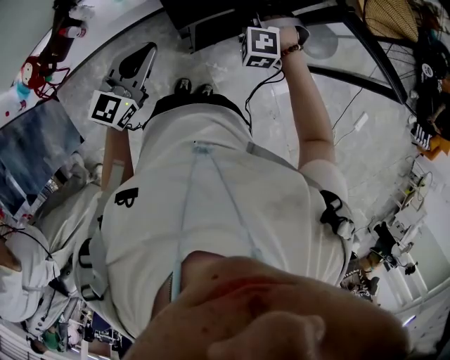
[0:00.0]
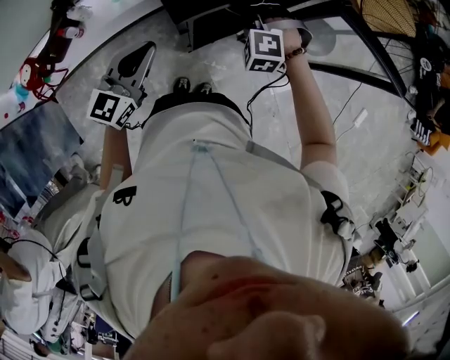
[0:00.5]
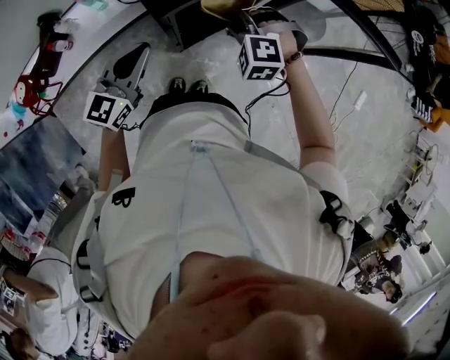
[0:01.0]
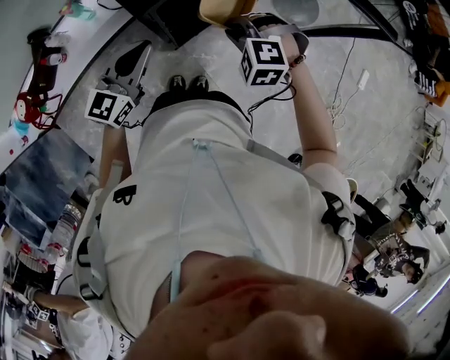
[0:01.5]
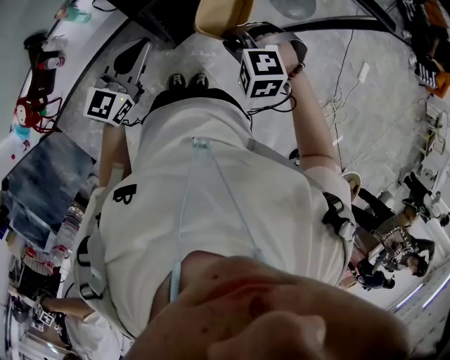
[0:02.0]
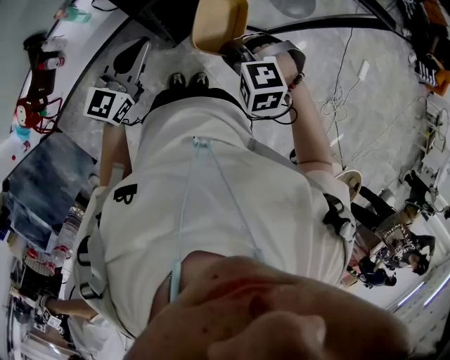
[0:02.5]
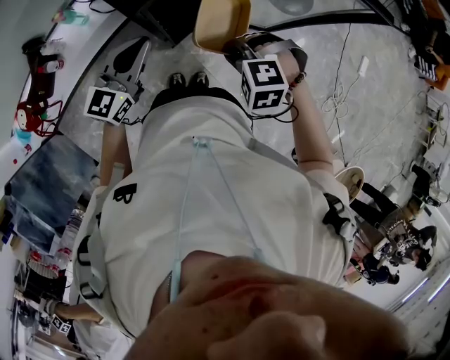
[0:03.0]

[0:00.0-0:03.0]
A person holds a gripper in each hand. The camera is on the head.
0:00.0 to 0:01.5: The right gripper is displaced backward and to the right by approximately 15 cm. The left gripper moves to the right, roughly 5 cm.
0:01.5 to 0:03.0: The right gripper goes about 10 cm backward.

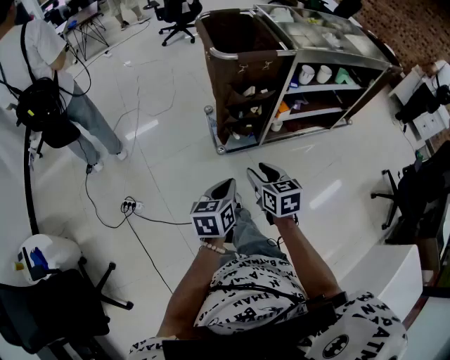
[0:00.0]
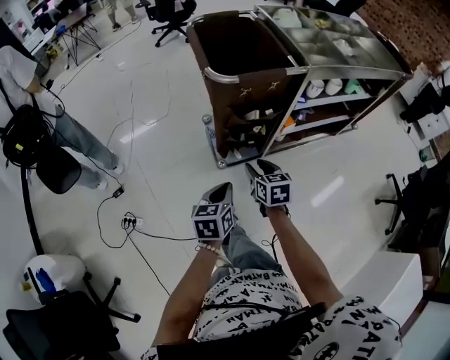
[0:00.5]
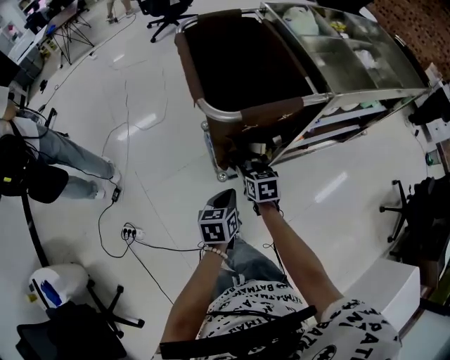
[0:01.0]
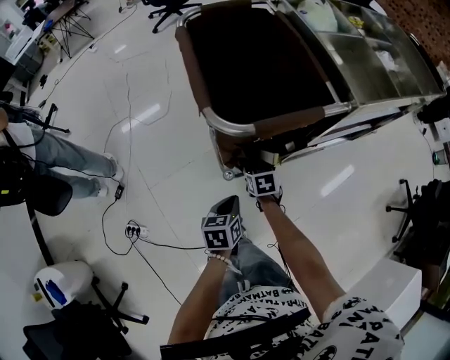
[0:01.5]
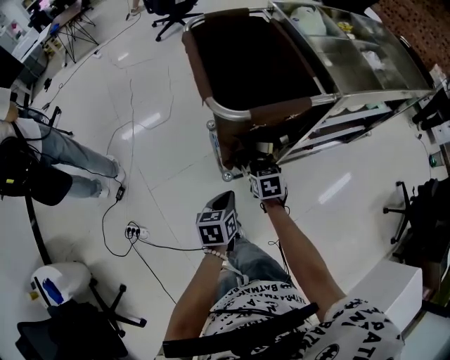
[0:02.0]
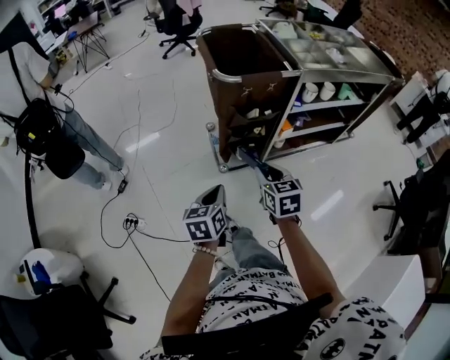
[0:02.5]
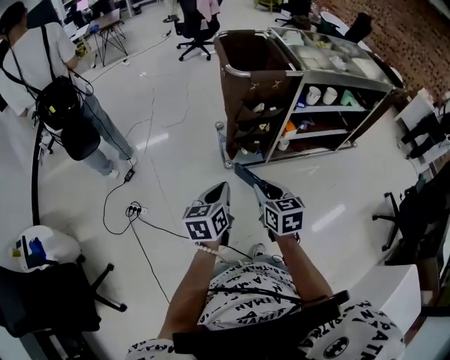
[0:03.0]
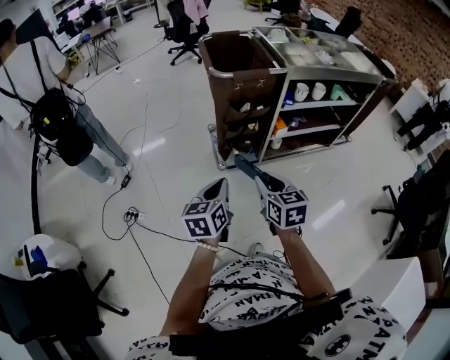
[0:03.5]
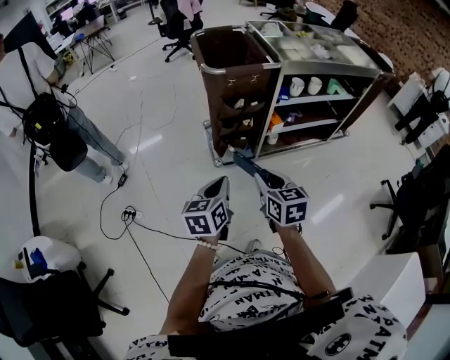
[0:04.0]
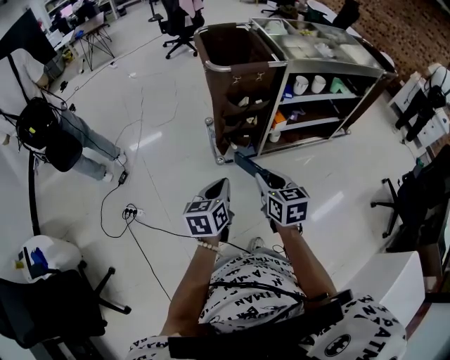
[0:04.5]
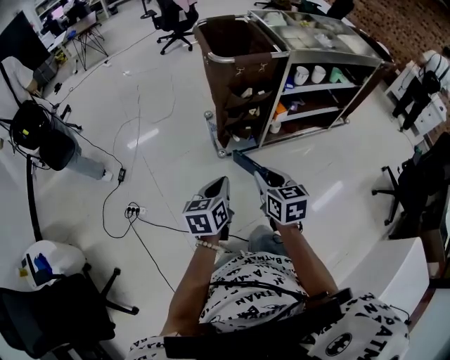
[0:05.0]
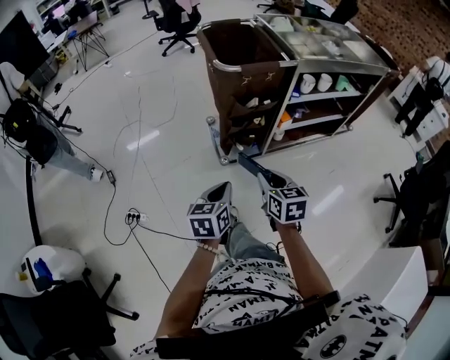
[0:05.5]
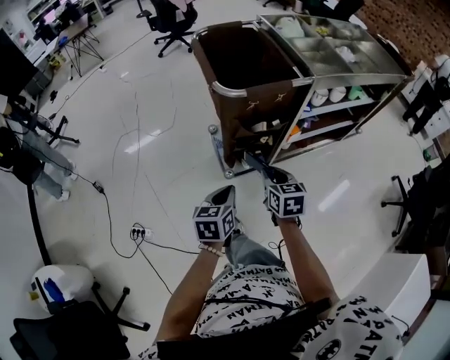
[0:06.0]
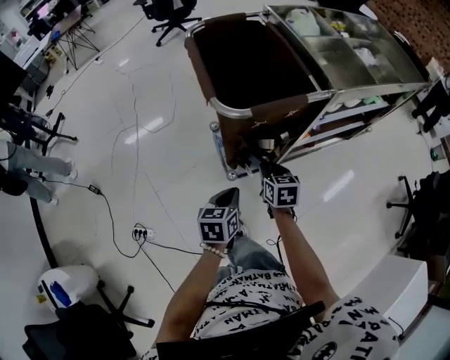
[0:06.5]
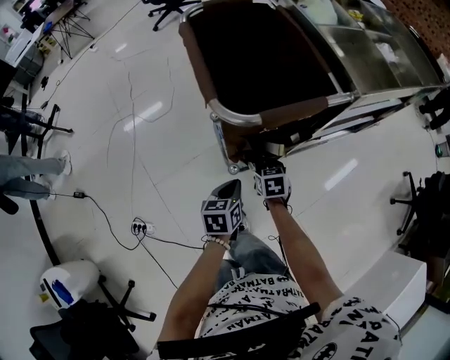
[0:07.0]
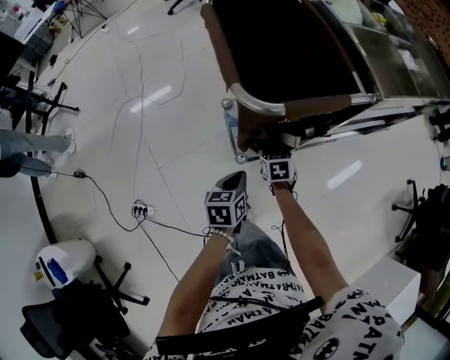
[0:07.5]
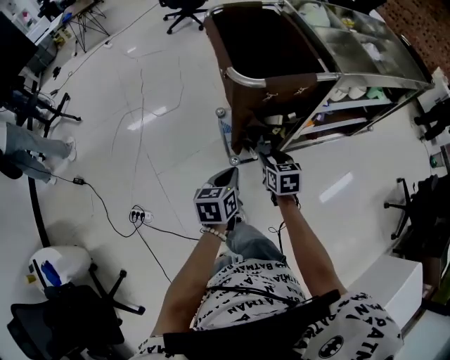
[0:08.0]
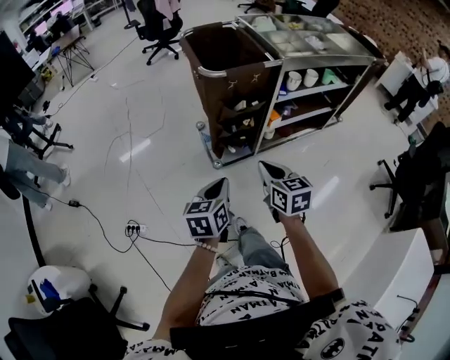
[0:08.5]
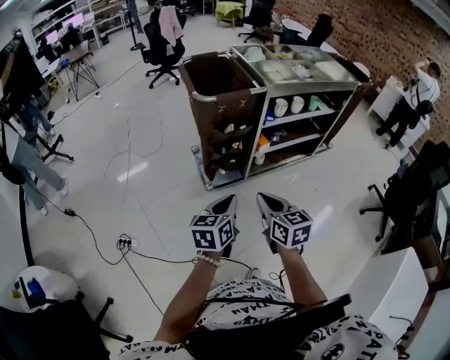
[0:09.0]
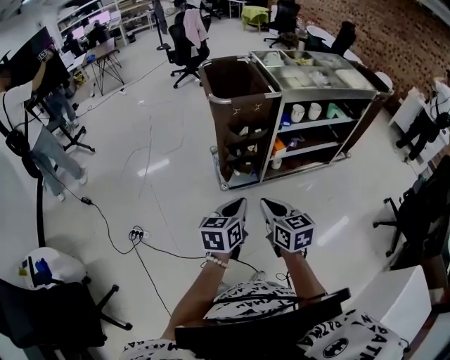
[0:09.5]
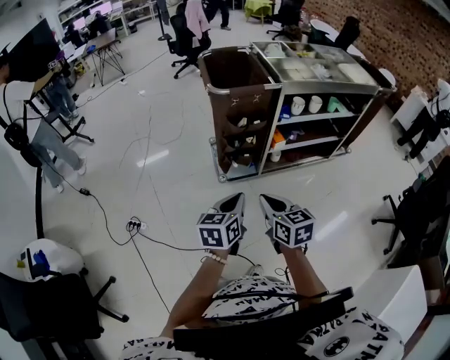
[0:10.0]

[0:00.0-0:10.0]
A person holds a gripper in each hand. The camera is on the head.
0:00.0 to 0:02.0: The grippers both shift forward and downward by roughly 30 cm. The right gripper turns by approximately 20 degrees, and closes its fingers.
0:02.0 to 0:04.0: The grippers both shift backward and upward by about 35 cm. The right gripper rotates approximately 20 degrees.
0:04.0 to 0:06.0: Both grippers move forward and downward, approximately 20 cm.
0:06.0 to 0:08.0: The right gripper travels downward and forward by about 10 cm, and opens up. The left gripper shifts approximately 5 cm forward.
0:08.0 to 0:10.0: The right gripper goes about 35 cm backward and upward, and closes its fingers; the left gripper goes some 30 cm backward, upward and to the right.

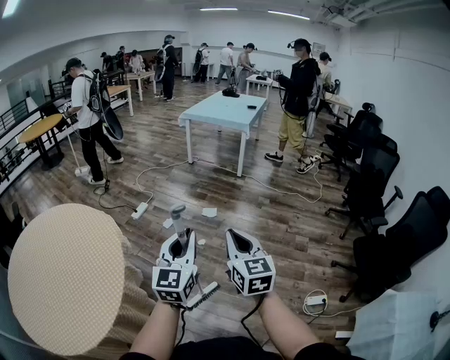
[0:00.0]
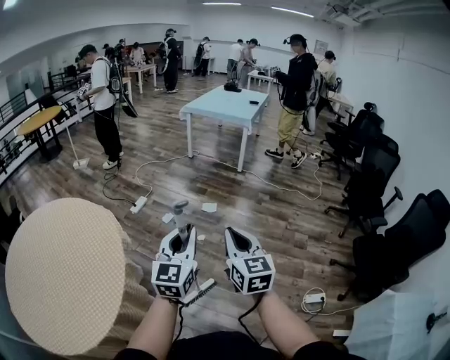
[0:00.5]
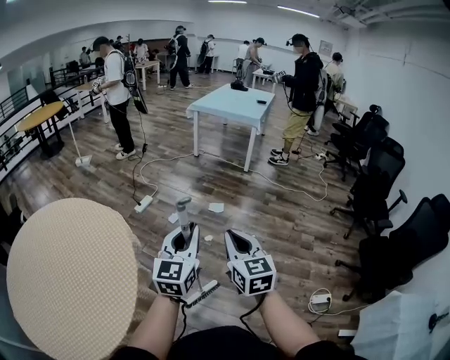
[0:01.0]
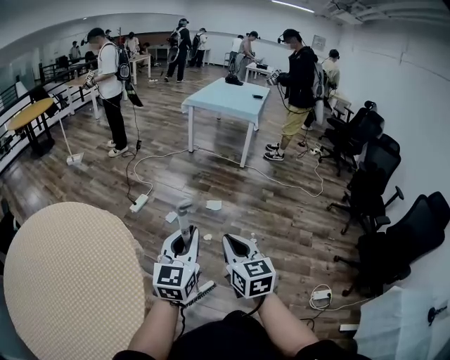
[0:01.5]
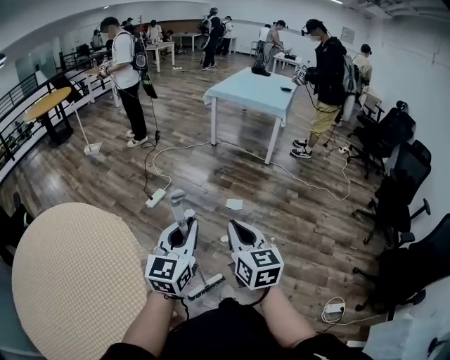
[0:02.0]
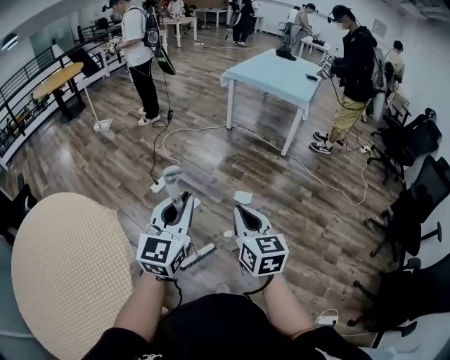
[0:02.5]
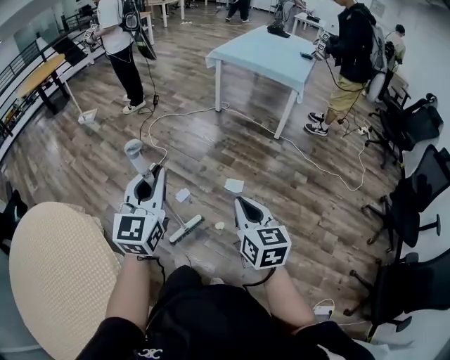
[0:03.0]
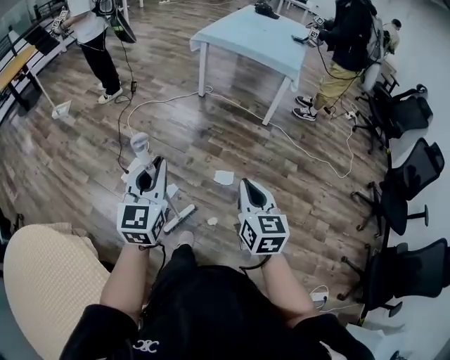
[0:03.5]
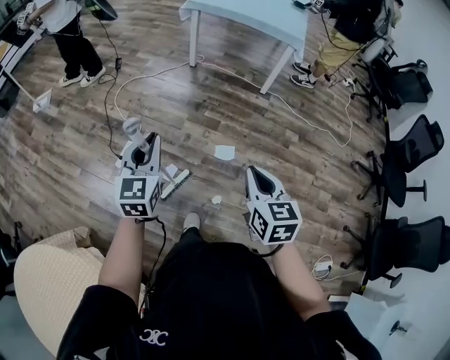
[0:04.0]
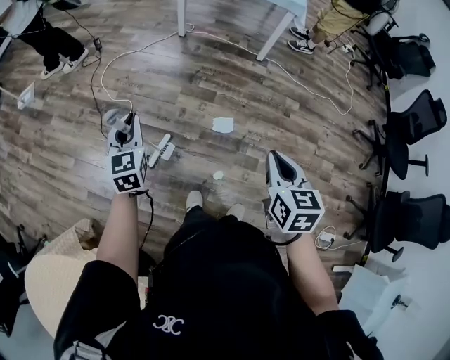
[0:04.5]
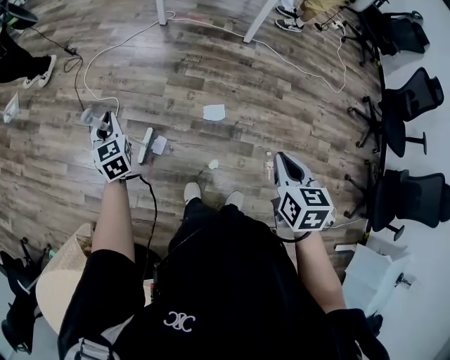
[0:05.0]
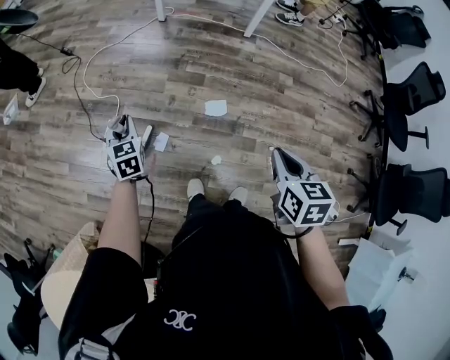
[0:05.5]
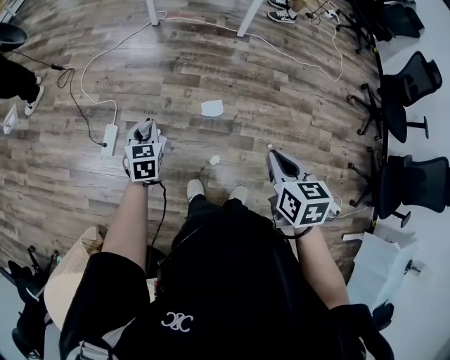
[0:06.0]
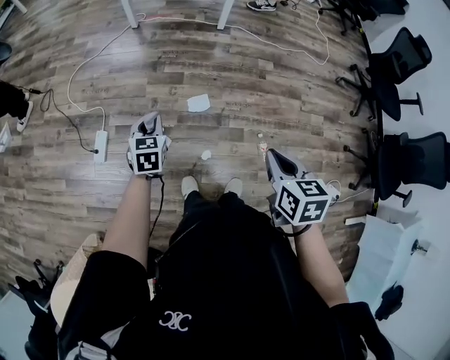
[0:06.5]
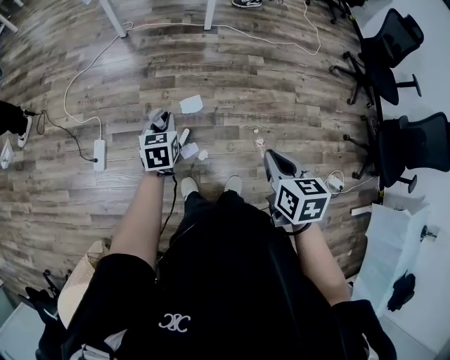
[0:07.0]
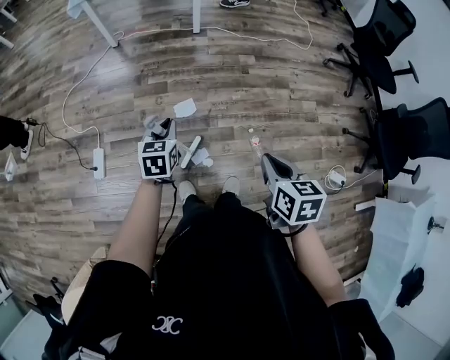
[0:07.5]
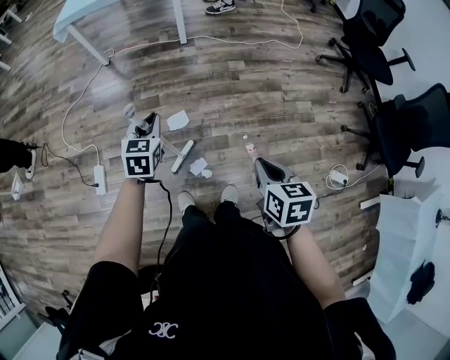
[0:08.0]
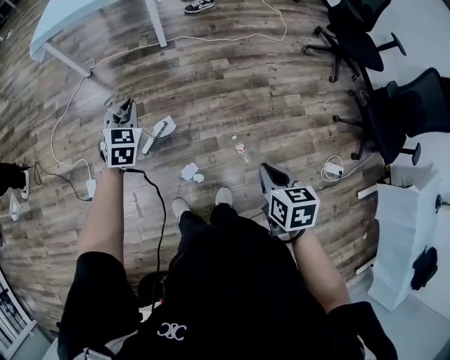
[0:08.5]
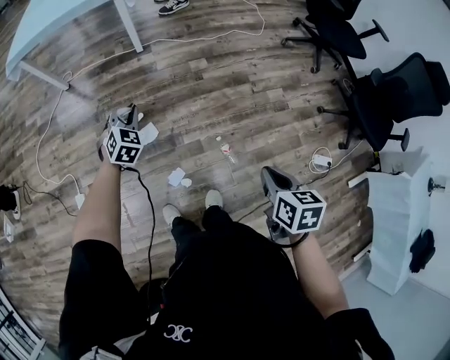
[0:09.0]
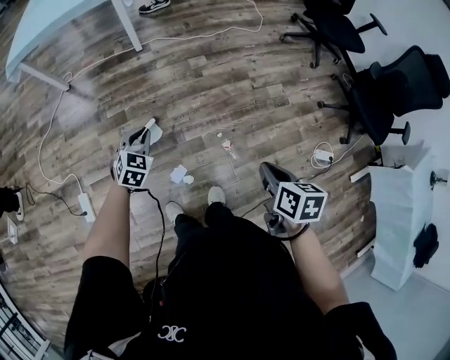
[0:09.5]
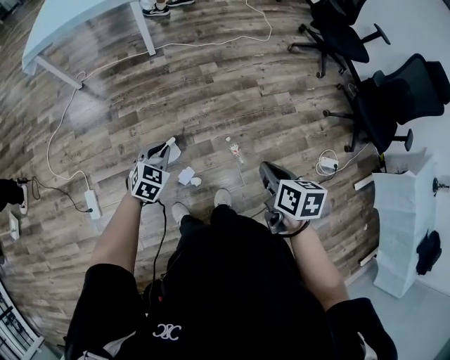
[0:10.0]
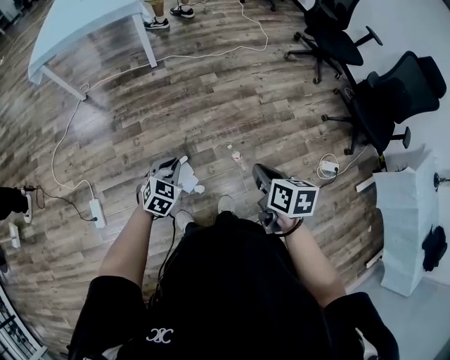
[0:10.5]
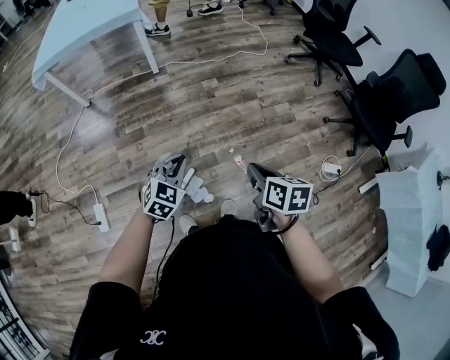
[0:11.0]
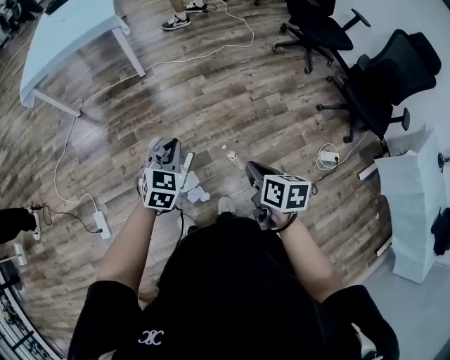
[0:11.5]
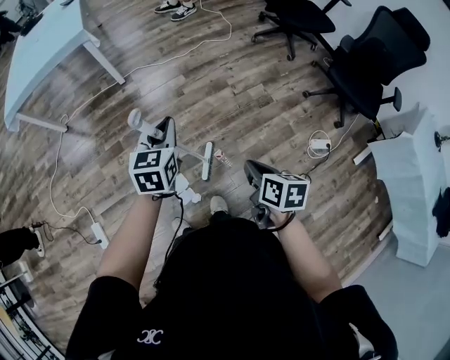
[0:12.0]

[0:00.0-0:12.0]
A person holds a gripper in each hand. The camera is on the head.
0:00.0 to 0:02.0: Both grippers move forward and to the left, roughly 25 cm.
0:02.0 to 0:04.0: The pair of grippers is taken forward, approximately 50 cm. The right gripper turns by approximately 20 degrees.
0:04.0 to 0:06.0: The right gripper heads to the right and downward, covering roughly 10 cm, and turns by some 20 degrees; the left gripper shifts some 25 cm downward, and swivels approximately 30 degrees.
0:06.0 to 0:08.0: The two grippers go approximately 25 cm to the right. The left gripper turns by approximately 20 degrees.
0:08.0 to 0:10.0: The right gripper moves to the right, roughly 10 cm. Meanwhile the left gripper moves to the right and downward, roughly 15 cm, travels forward and back again, about 15 cm each way, and turns by some 30 degrees.
0:10.0 to 0:12.0: The right gripper is displaced to the right by roughly 10 cm; the left gripper shifts approximately 25 cm to the right, upward and forward, and swivels about 30 degrees.

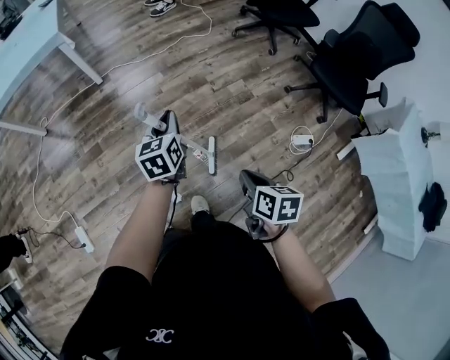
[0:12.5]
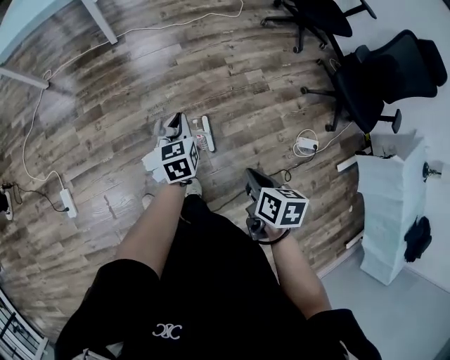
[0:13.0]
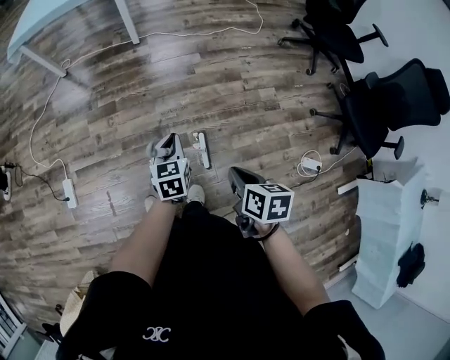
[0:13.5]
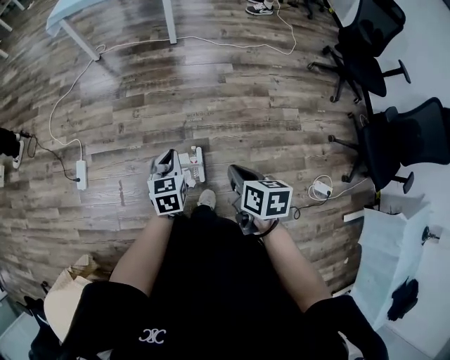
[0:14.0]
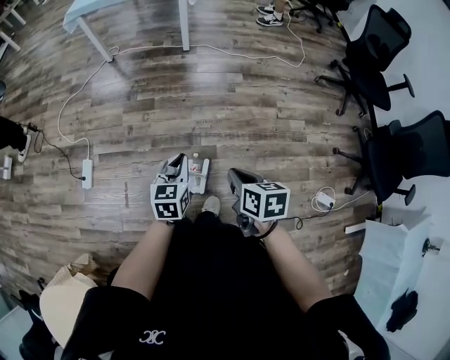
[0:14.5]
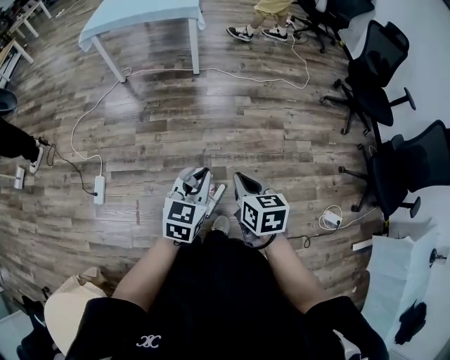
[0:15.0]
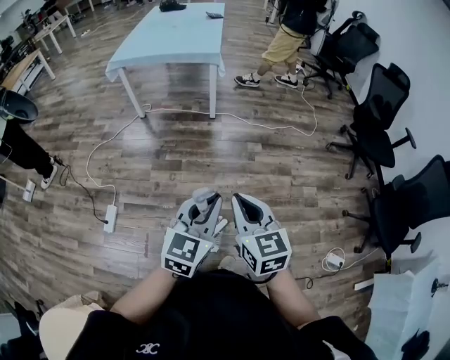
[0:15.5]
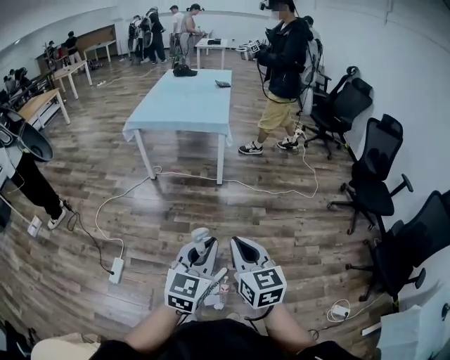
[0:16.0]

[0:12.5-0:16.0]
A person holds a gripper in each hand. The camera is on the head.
0:12.5 to 0:14.5: The left gripper ends up about 30 cm from where it was; the right gripper shifts by about 25 cm, and turns by approximately 30 degrees.
0:14.5 to 0:16.0: The right gripper heads upward and to the left, covering some 30 cm, and angles its fingers upward, by approximately 30 degrees. The left gripper shifts some 30 cm upward, and turns by about 30 degrees.
